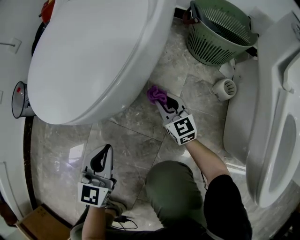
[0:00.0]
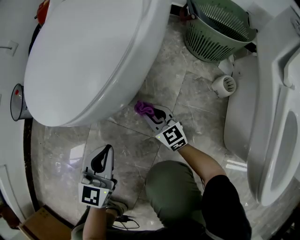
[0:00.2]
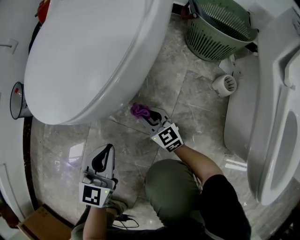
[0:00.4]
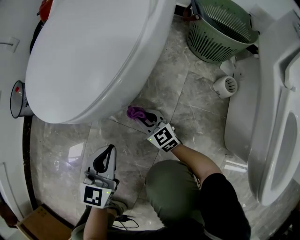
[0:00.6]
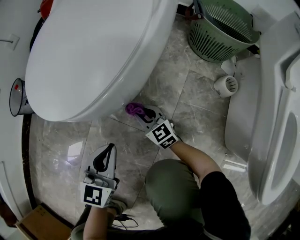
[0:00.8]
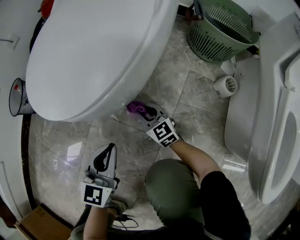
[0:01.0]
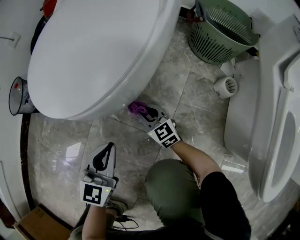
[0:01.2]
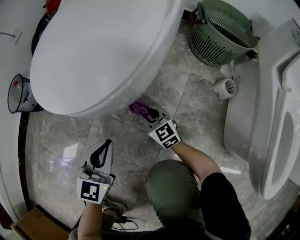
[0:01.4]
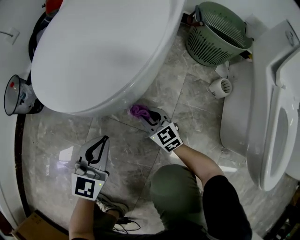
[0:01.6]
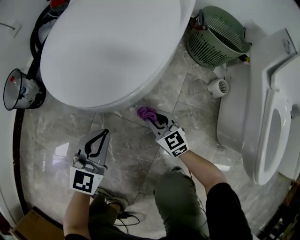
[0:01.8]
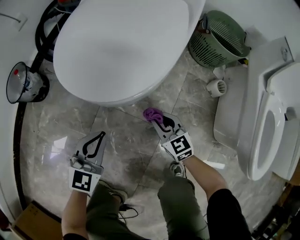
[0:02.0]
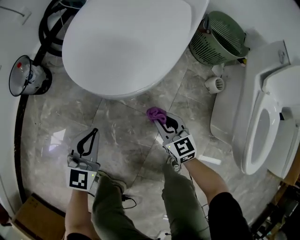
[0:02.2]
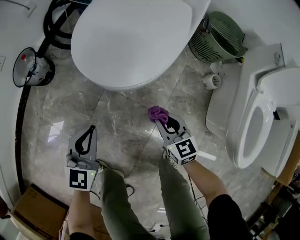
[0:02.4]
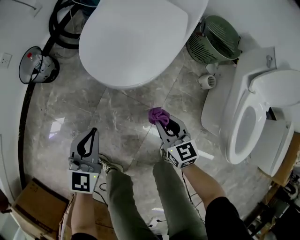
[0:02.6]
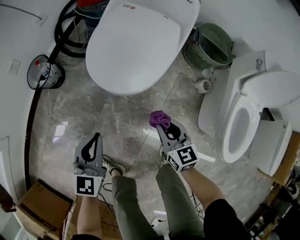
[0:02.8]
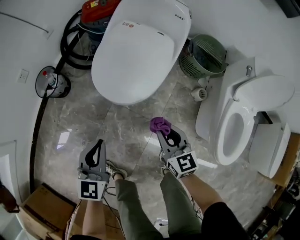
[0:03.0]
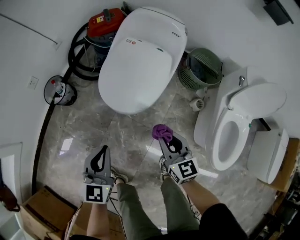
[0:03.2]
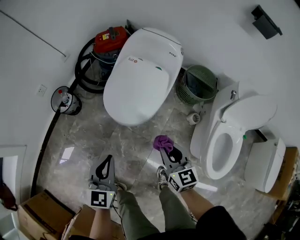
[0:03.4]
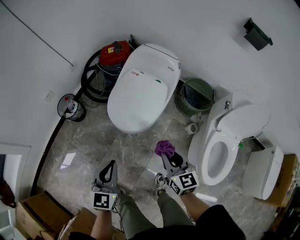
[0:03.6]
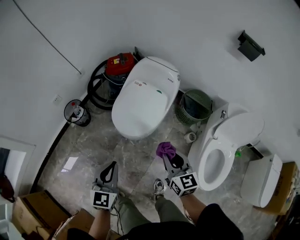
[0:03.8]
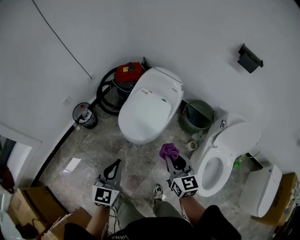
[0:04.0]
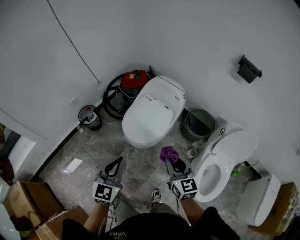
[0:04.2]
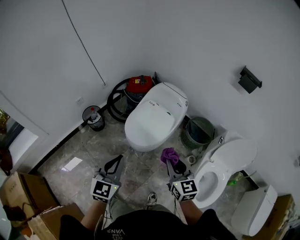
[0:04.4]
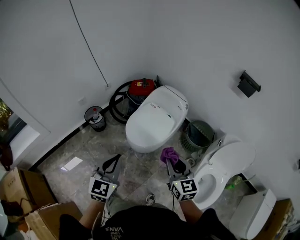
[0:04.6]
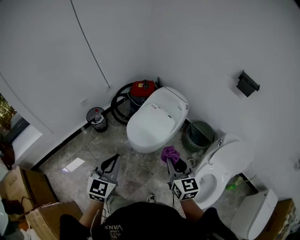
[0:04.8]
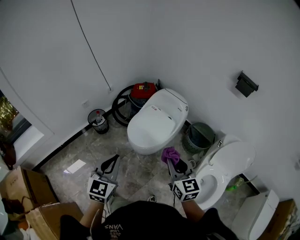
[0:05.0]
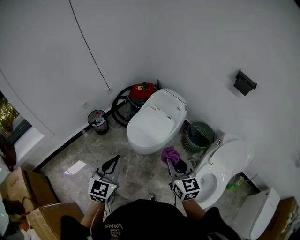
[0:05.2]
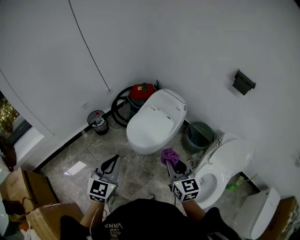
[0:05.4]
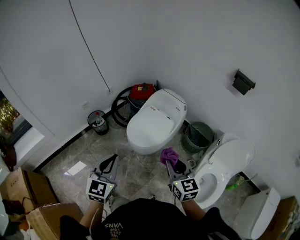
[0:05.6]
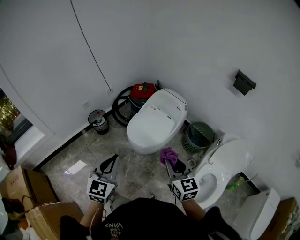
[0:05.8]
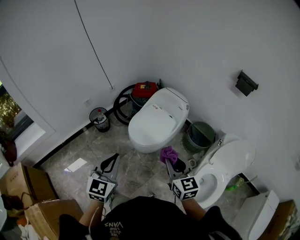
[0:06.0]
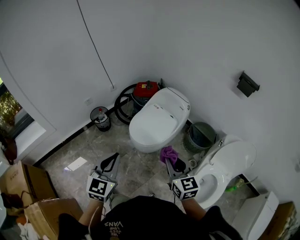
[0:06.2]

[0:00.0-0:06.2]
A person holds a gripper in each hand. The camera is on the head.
0:00.0 to 0:01.6: The right gripper is displaced to the left and backward by roughly 15 cm; the left gripper moves some 5 cm.
0:01.6 to 0:03.2: The two grippers go about 40 cm upward.
0:03.2 to 0:04.6: Both grippers travel together upward, approximately 30 cm.
0:04.6 to 0:06.2: The left gripper shifts by approximately 5 cm.

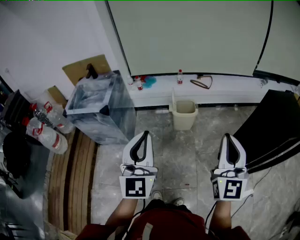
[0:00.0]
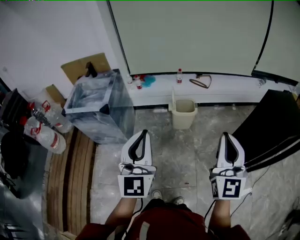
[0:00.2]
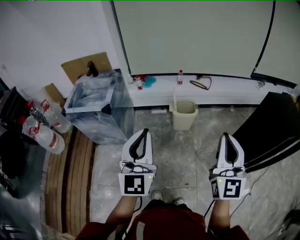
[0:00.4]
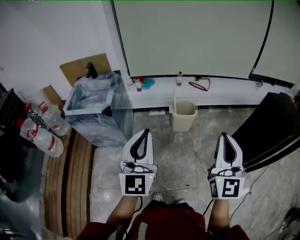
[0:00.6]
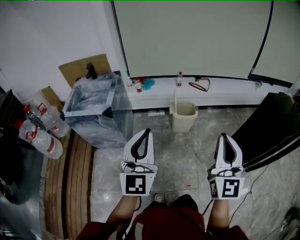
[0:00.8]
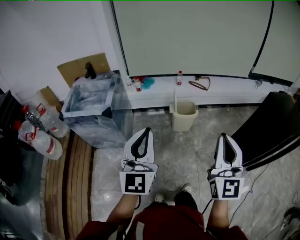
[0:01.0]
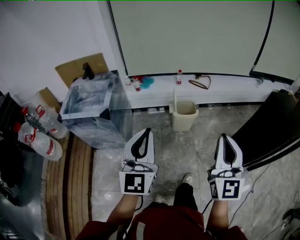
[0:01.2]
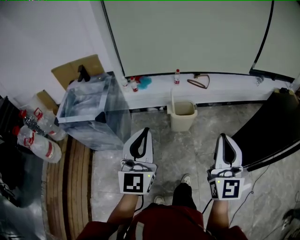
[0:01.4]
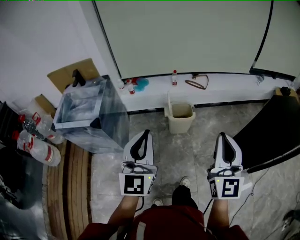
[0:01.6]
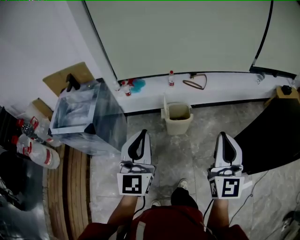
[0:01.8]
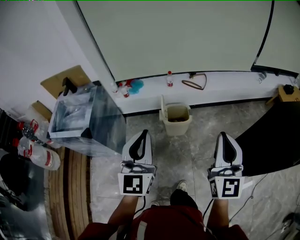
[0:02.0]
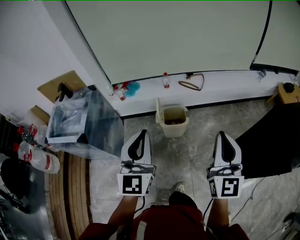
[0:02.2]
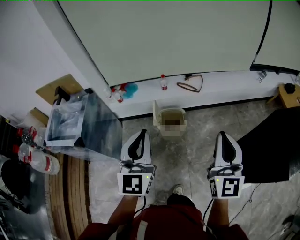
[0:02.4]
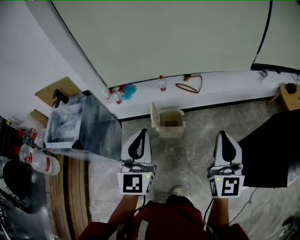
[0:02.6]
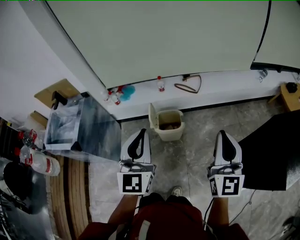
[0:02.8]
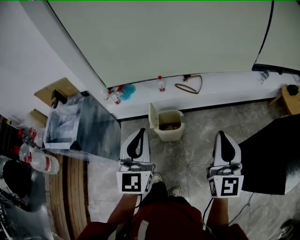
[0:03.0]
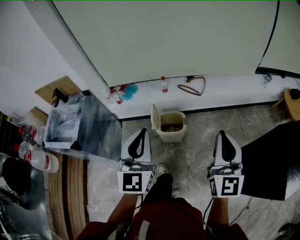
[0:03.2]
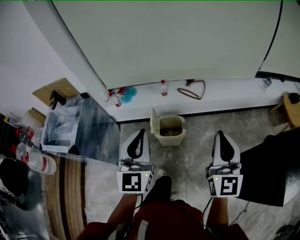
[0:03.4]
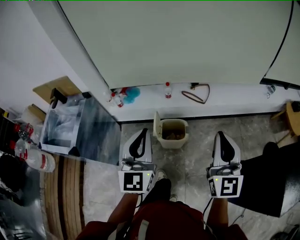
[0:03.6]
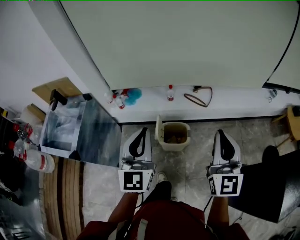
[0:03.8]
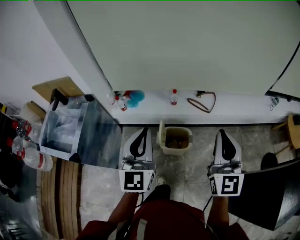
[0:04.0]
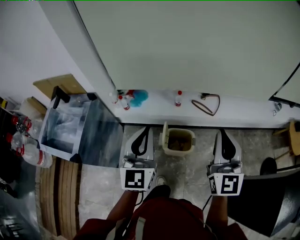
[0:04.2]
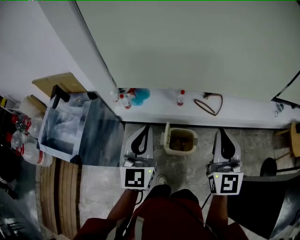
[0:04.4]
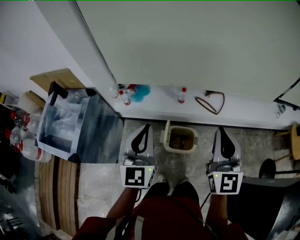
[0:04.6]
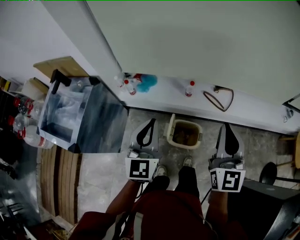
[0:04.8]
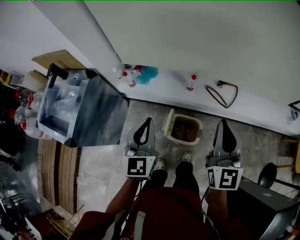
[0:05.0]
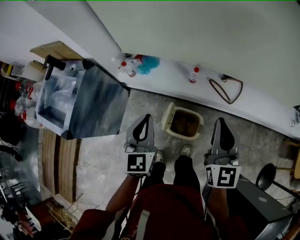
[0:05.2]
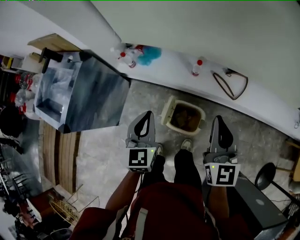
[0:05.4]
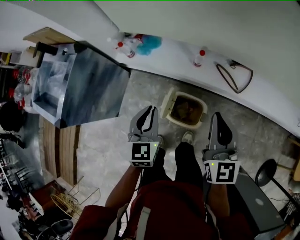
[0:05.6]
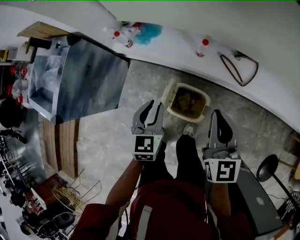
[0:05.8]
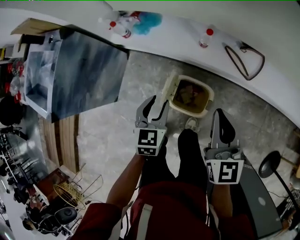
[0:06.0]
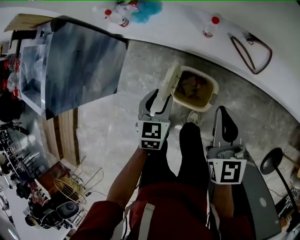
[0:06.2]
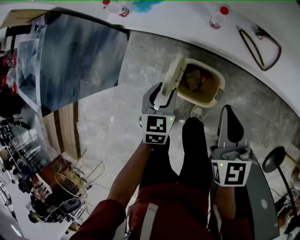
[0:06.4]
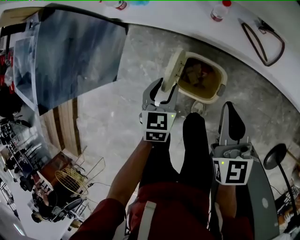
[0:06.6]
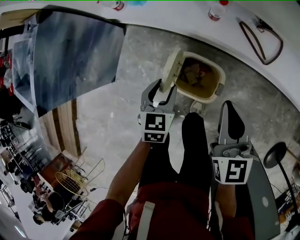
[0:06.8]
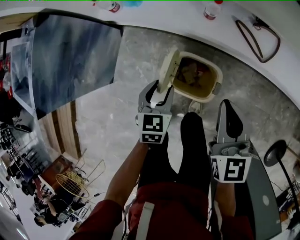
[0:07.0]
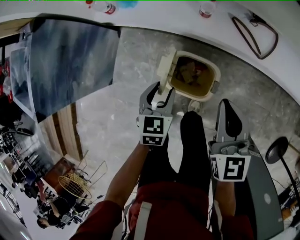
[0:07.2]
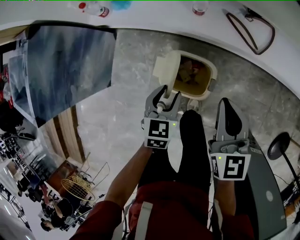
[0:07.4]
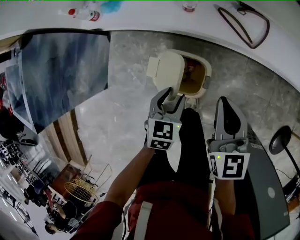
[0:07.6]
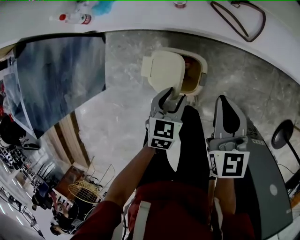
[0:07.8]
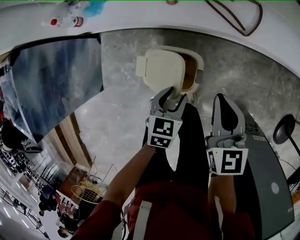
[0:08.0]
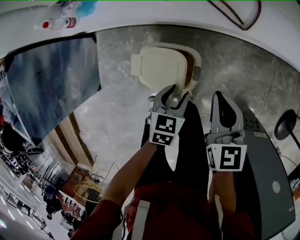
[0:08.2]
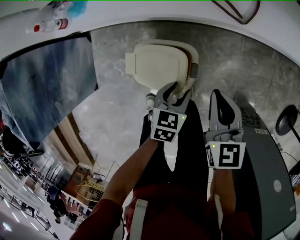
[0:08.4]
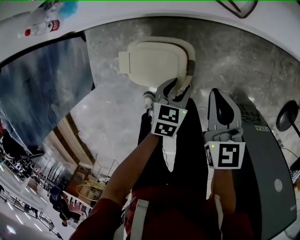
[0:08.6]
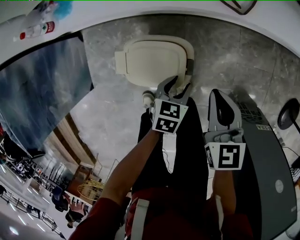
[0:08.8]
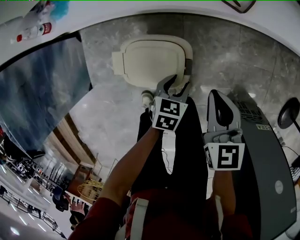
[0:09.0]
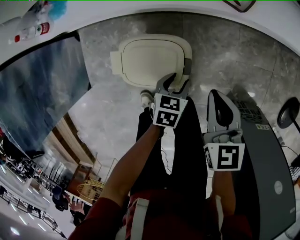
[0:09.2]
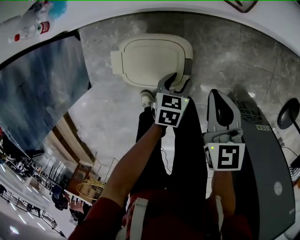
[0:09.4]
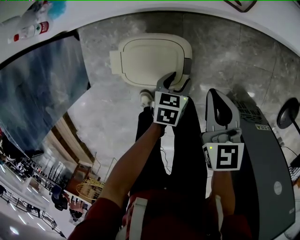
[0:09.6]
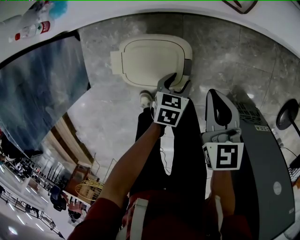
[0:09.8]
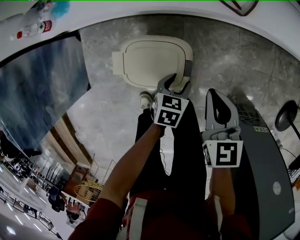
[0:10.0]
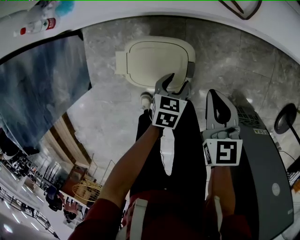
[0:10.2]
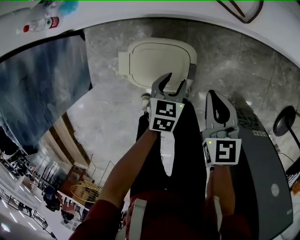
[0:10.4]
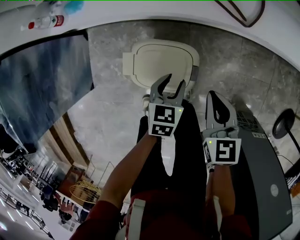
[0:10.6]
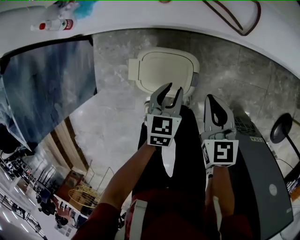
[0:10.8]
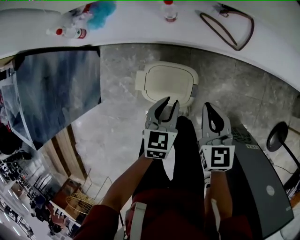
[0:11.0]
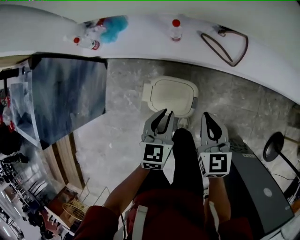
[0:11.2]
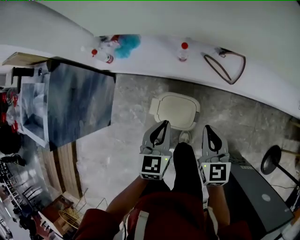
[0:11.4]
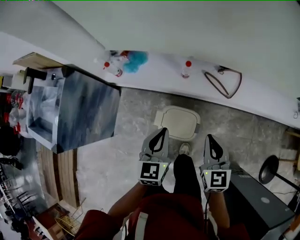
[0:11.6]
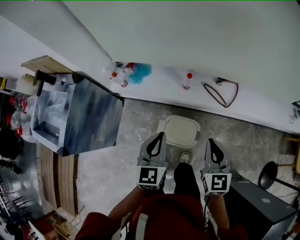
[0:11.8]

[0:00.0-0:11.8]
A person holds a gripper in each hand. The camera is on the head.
0:00.0 to 0:01.4: The right gripper is displaced to the left and forward by some 10 cm; the left gripper is displaced forward and to the left by some 10 cm.
0:01.4 to 0:03.0: The two grippers go roughly 35 cm forward and to the right.
0:03.0 to 0:04.4: The grippers both shift forward and to the left by approximately 25 cm.
0:04.4 to 0:06.0: The left gripper goes about 35 cm downward, angles its fingers downward, by approximately 40 degrees, and opens its fingers; the right gripper is displaced downward and forward by approximately 30 cm, and swivels roughly 30 degrees.
0:06.0 to 0:07.4: The left gripper heads downward and to the right, covering some 15 cm; the right gripper is displaced downward by about 10 cm.
0:07.4 to 0:08.8: The left gripper shifts about 25 cm to the right and downward, and rotates about 20 degrees. Meanwhile the right gripper shifts about 15 cm downward and to the right.
0:08.8 to 0:10.4: The grippers make only small movements.
0:10.4 to 0:11.8: The left gripper shifts some 50 cm upward and to the left, angles its fingers upward, by some 40 degrees, and closes its fingers; the right gripper goes about 30 cm upward, and swivels some 20 degrees.

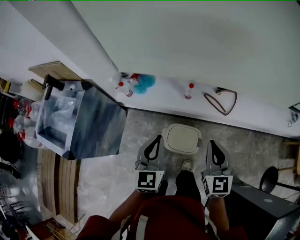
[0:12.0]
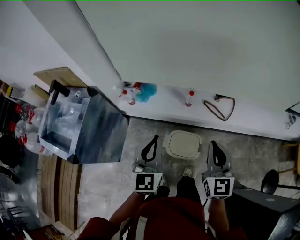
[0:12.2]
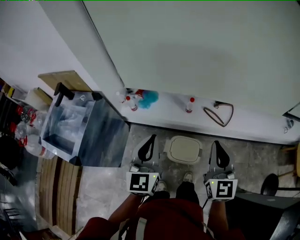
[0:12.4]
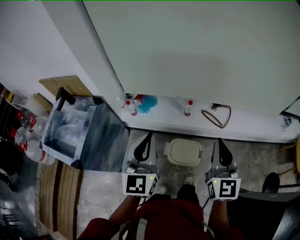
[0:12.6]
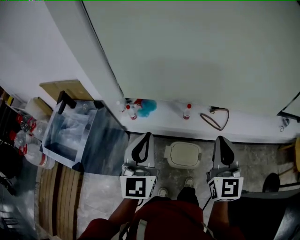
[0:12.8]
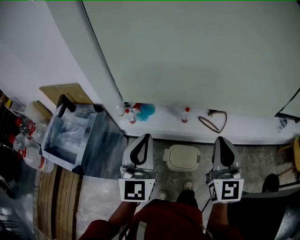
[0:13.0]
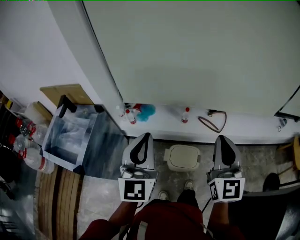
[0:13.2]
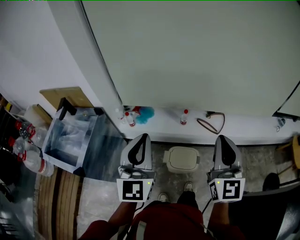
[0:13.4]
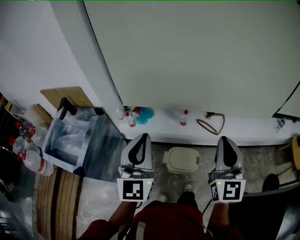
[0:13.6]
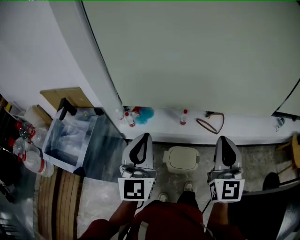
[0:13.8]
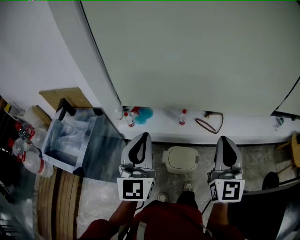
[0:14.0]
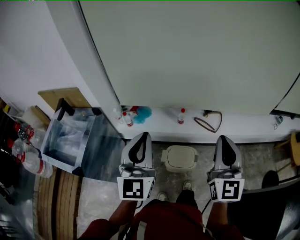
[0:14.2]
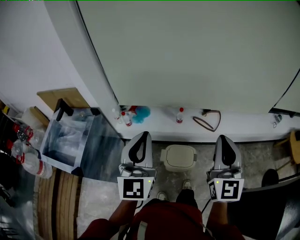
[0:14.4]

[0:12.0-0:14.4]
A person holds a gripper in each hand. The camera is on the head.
0:12.0 to 0:13.2: The two grippers go approximately 20 cm upward. The right gripper turns by some 20 degrees. The left gripper turns by about 20 degrees.
0:13.2 to 0:14.4: The grippers move only a little.

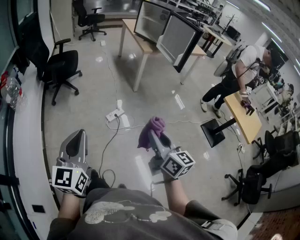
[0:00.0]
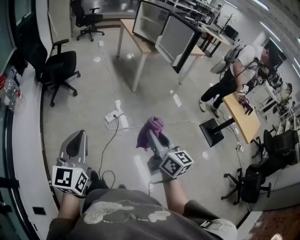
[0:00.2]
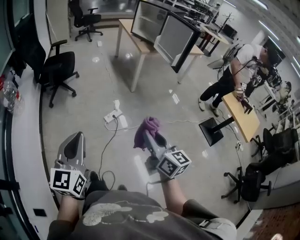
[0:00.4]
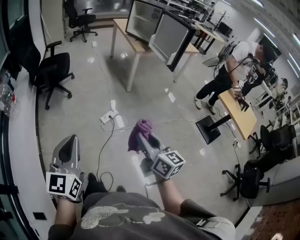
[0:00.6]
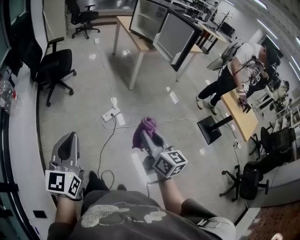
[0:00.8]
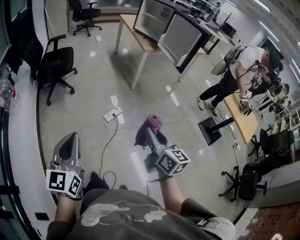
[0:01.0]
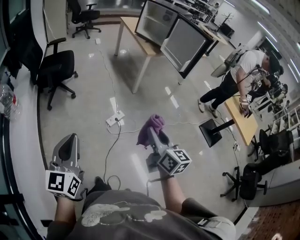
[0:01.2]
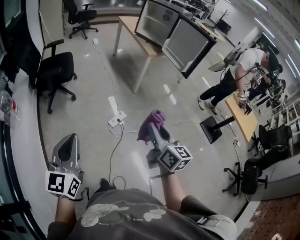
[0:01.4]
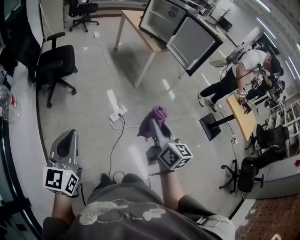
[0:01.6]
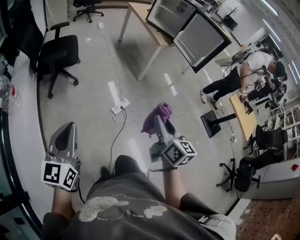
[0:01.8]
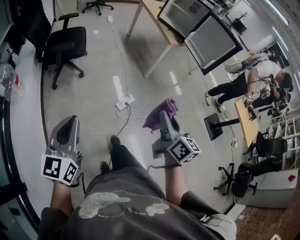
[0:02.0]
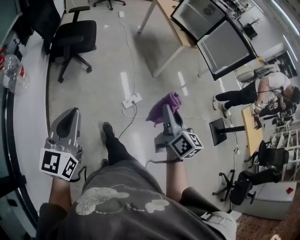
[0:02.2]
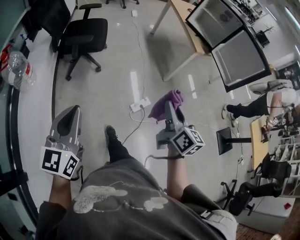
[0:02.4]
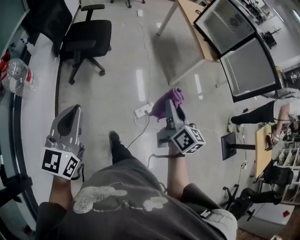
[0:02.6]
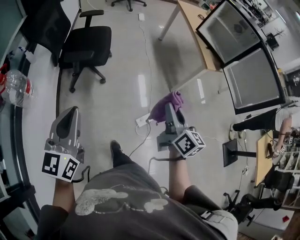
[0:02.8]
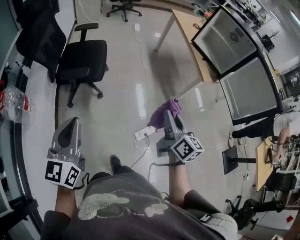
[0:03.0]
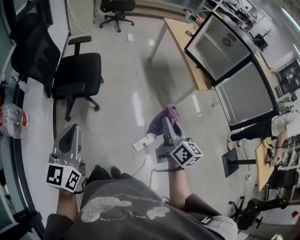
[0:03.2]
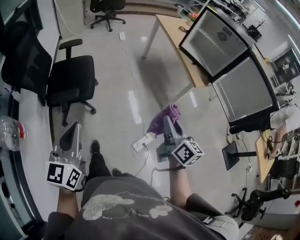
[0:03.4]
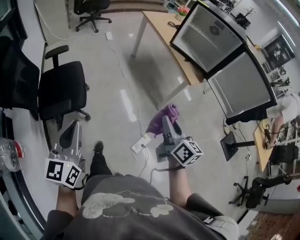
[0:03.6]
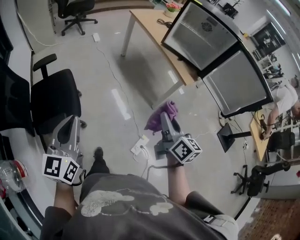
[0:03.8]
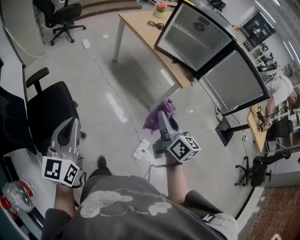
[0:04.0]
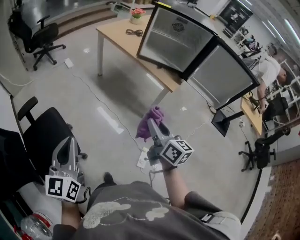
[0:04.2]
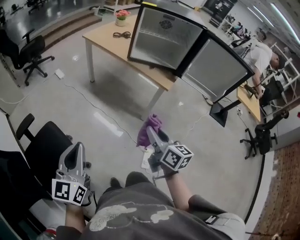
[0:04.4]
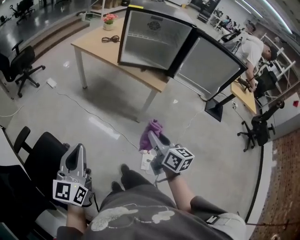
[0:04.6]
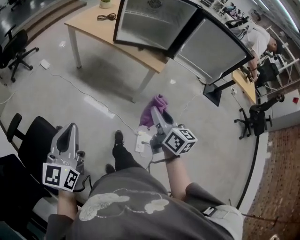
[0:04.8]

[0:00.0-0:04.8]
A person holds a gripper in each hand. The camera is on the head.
0:00.0 to 0:01.6: The right gripper travels forward and to the left by roughly 20 cm; the left gripper heads to the left and forward, covering approximately 20 cm.
0:01.6 to 0:03.2: The two grippers go some 35 cm forward.
0:03.2 to 0:04.8: The right gripper moves some 20 cm, and swivels approximately 40 degrees. Meanwhile the left gripper moves about 40 cm, and changes its angle by some 50 degrees.
